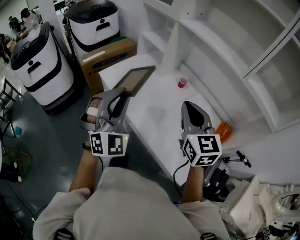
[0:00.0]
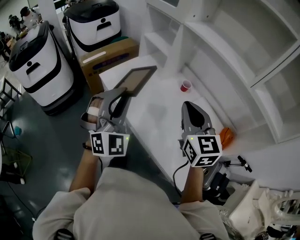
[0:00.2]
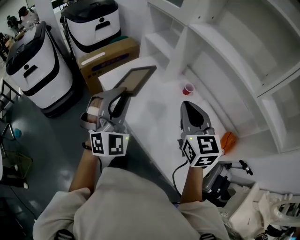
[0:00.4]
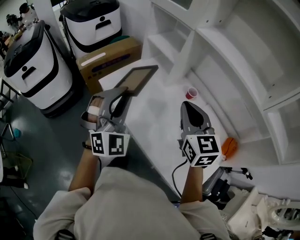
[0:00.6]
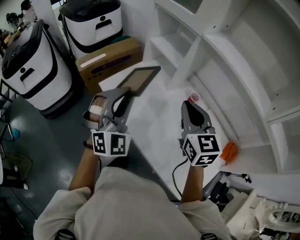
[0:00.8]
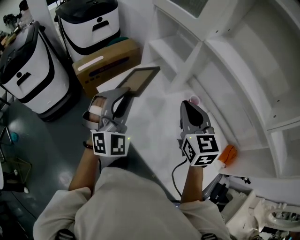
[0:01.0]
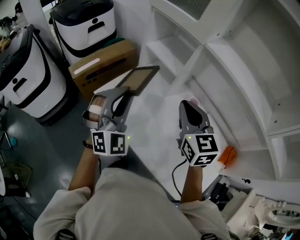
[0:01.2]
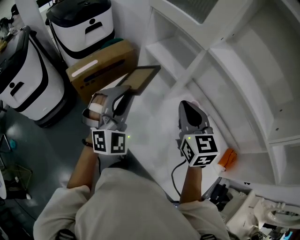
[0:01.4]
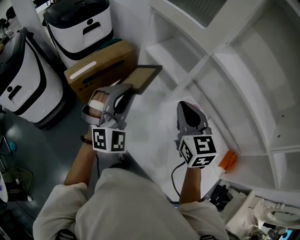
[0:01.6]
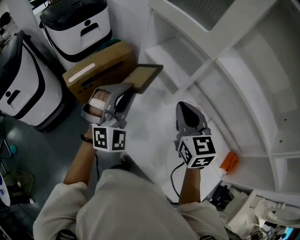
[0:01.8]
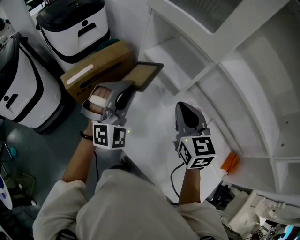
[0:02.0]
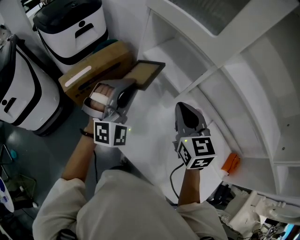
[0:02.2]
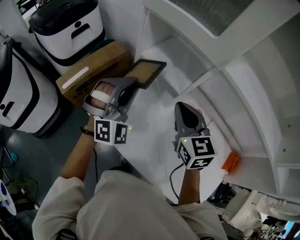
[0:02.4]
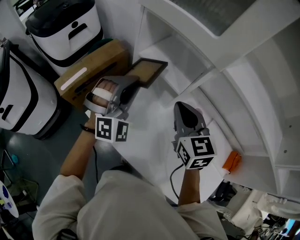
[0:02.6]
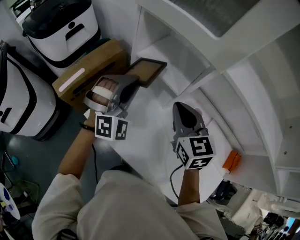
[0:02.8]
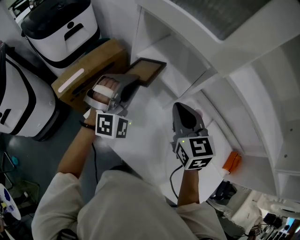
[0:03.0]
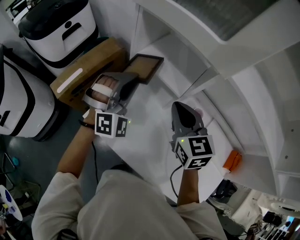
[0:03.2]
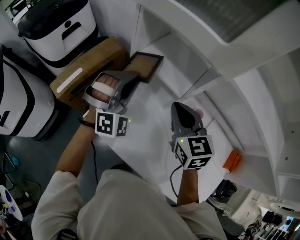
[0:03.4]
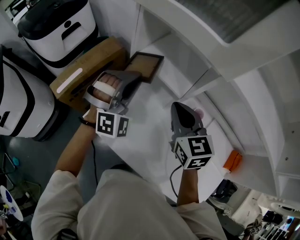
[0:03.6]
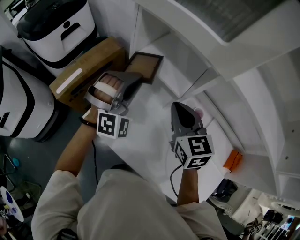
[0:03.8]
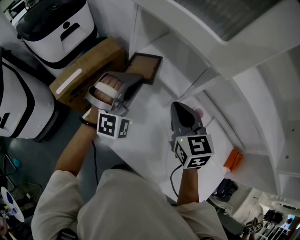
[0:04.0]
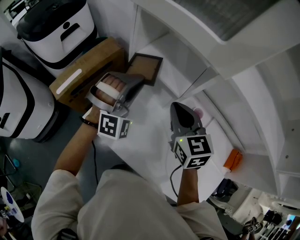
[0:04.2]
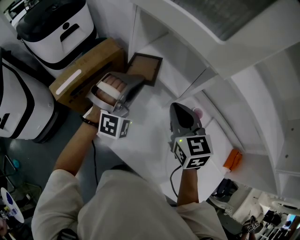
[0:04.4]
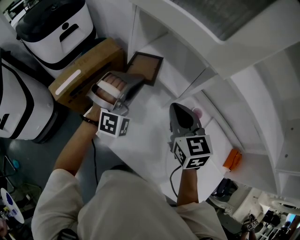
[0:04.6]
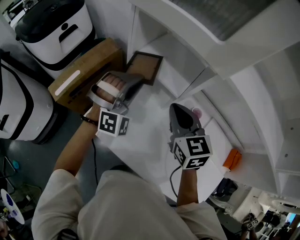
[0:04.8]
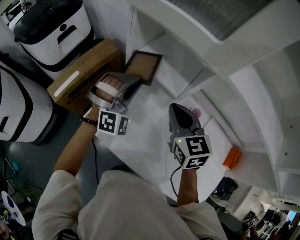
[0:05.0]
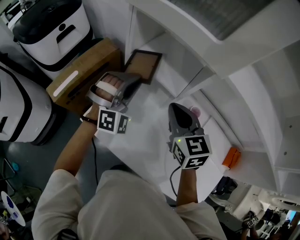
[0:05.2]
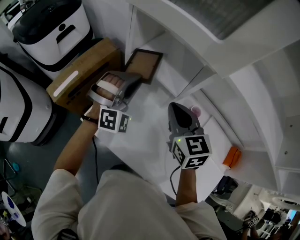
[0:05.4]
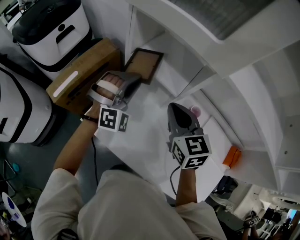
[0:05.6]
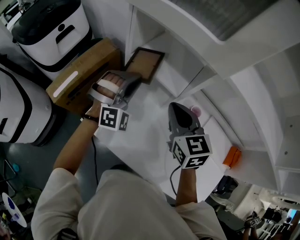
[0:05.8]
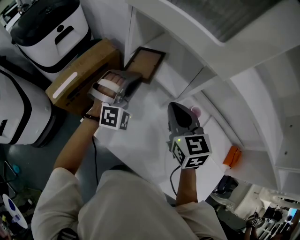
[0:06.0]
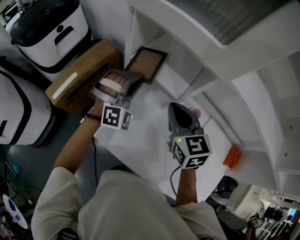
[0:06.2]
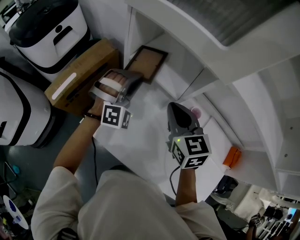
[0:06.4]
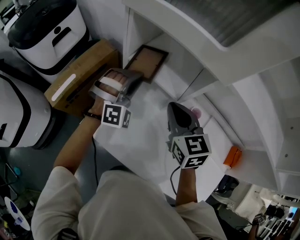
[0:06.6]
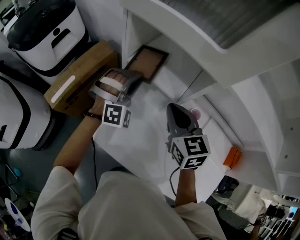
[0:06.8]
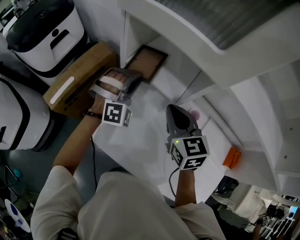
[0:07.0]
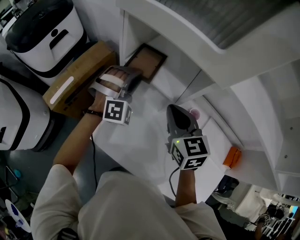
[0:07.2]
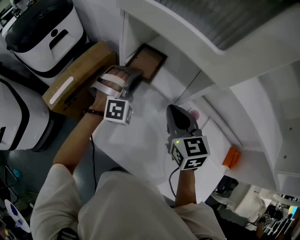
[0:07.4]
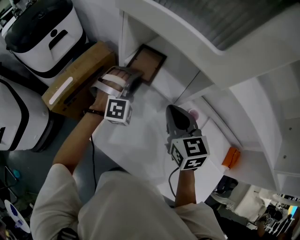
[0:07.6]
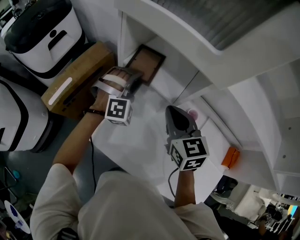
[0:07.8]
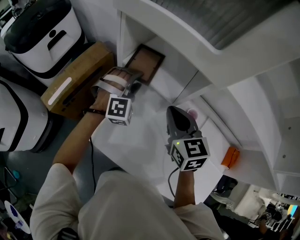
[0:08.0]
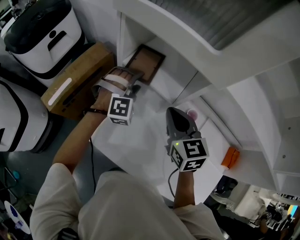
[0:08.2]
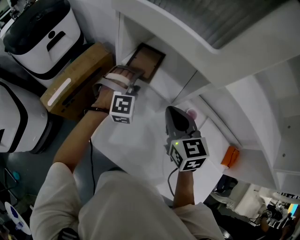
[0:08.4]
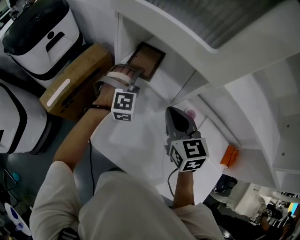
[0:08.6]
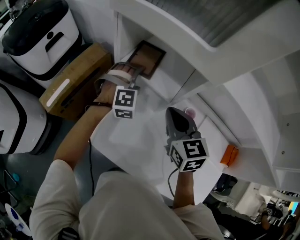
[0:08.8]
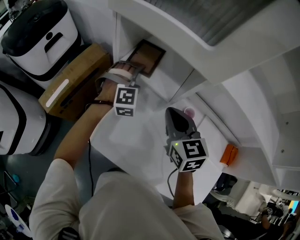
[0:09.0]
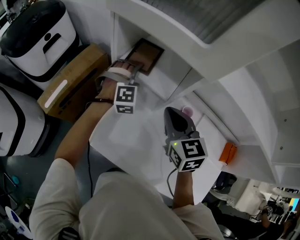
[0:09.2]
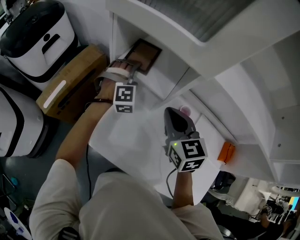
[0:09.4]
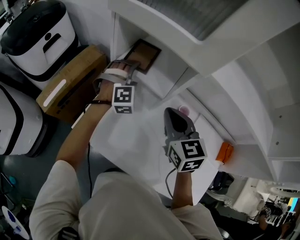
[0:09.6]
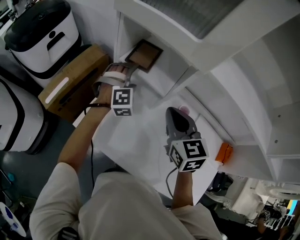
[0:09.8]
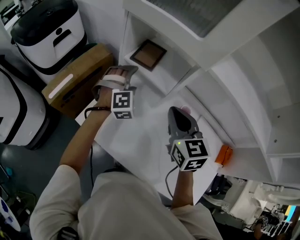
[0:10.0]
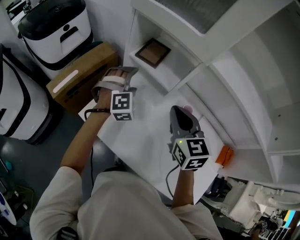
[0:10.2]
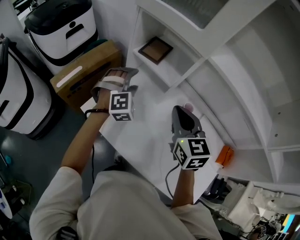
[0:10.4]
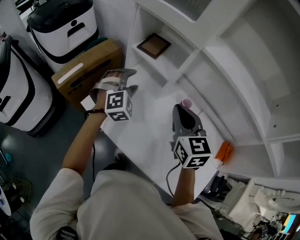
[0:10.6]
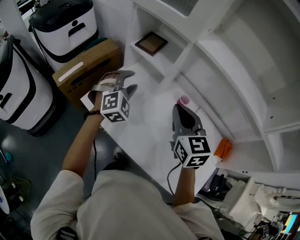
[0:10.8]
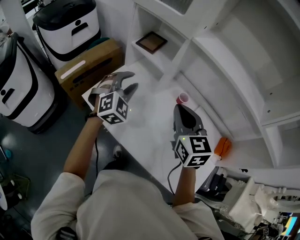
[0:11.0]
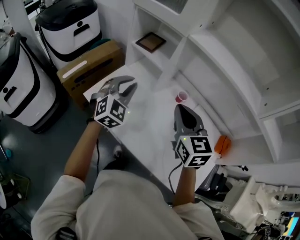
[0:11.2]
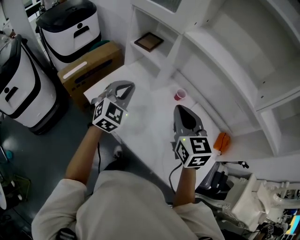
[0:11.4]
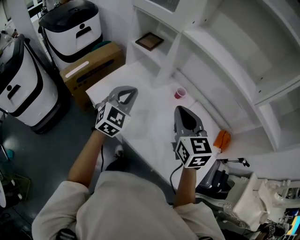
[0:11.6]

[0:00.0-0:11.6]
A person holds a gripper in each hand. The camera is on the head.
0:00.0 to 0:01.4: The grippers both shift forward by roughly 30 cm.
0:01.4 to 0:02.8: The left gripper travels forward by roughly 20 cm; the right gripper heads forward and downward, covering some 15 cm.
0:02.8 to 0:04.4: The grippers move only a little.
0:04.4 to 0:05.8: The grippers make only small movements.
0:05.8 to 0:07.2: The left gripper shifts some 5 cm forward.
0:07.2 to 0:08.8: The left gripper heads downward, covering approximately 5 cm, and opens.
0:08.8 to 0:10.2: Both grippers move backward, roughly 10 cm.
0:10.2 to 0:11.6: Both grippers move backward, approximately 25 cm. The left gripper rolls counterclockwise, seen from behind, by roughly 40 degrees, and closes up.

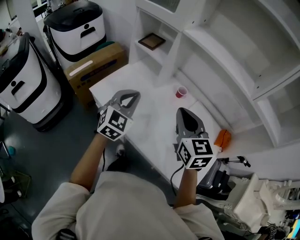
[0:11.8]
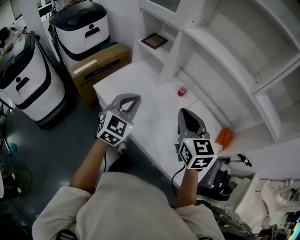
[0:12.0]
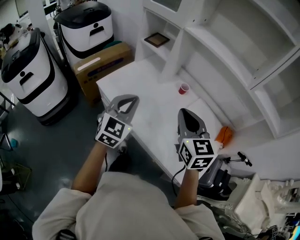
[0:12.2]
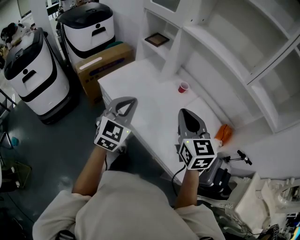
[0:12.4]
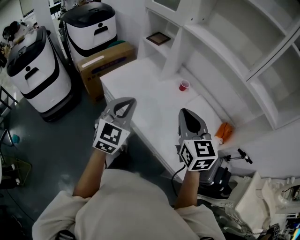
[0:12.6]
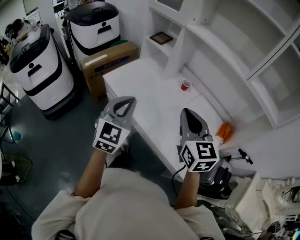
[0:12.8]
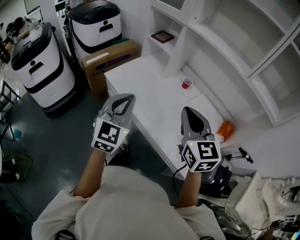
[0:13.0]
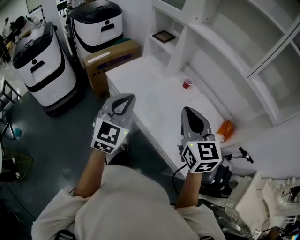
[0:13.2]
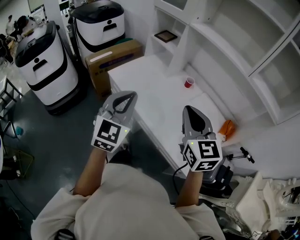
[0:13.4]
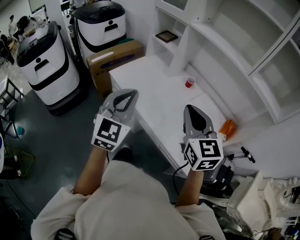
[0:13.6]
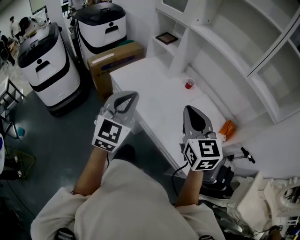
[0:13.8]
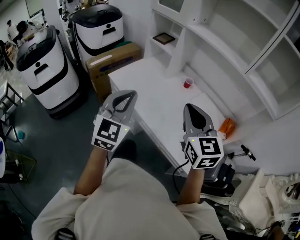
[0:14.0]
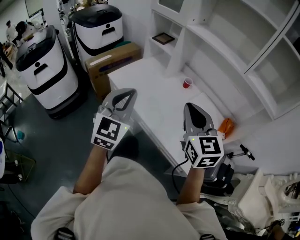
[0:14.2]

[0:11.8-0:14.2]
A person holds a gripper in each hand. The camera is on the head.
0:11.8 to 0:13.0: Both grippers move backward, some 20 cm.
0:13.0 to 0:14.2: The left gripper shifts by approximately 5 cm.

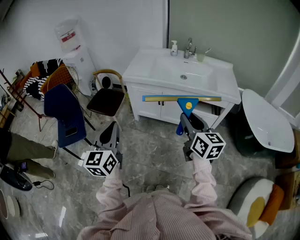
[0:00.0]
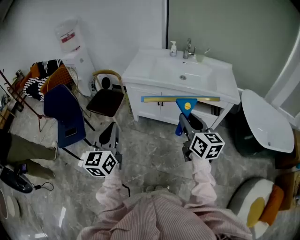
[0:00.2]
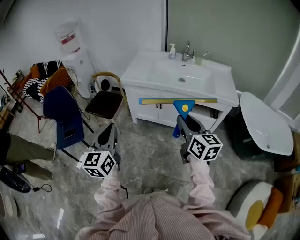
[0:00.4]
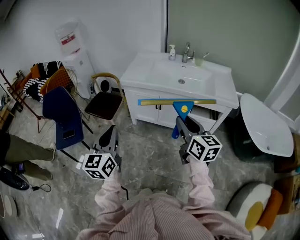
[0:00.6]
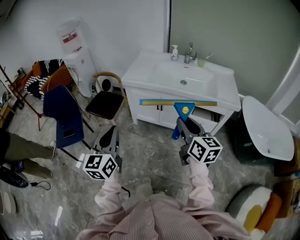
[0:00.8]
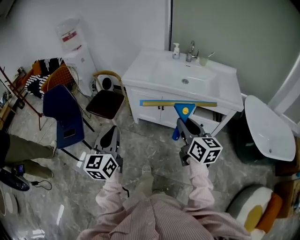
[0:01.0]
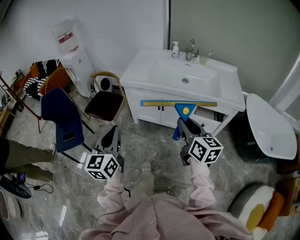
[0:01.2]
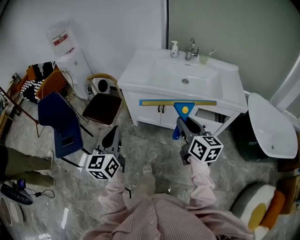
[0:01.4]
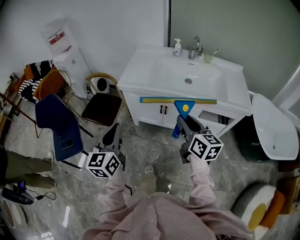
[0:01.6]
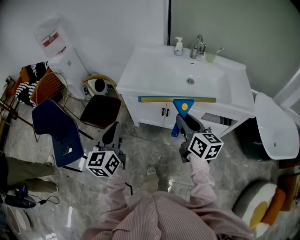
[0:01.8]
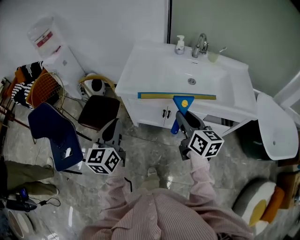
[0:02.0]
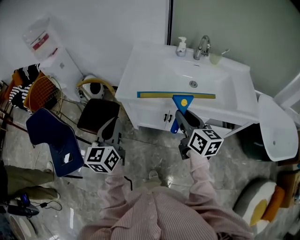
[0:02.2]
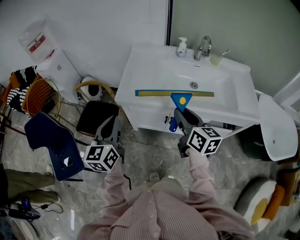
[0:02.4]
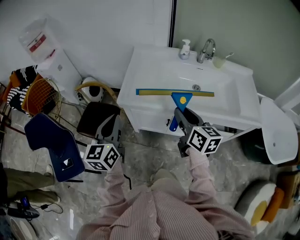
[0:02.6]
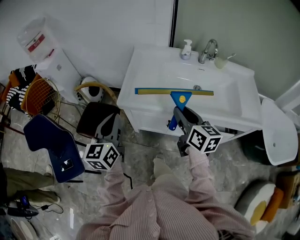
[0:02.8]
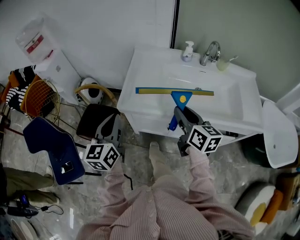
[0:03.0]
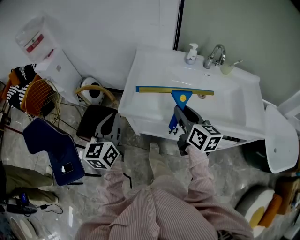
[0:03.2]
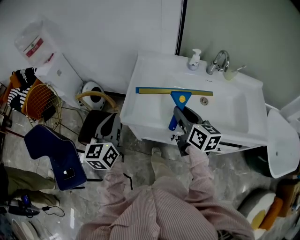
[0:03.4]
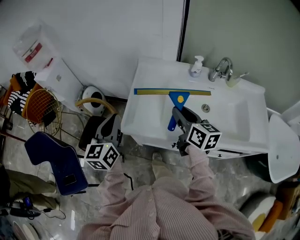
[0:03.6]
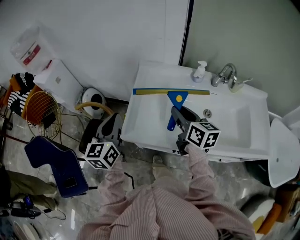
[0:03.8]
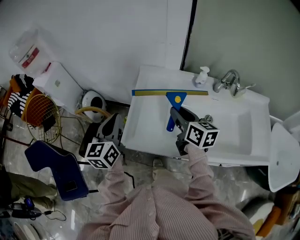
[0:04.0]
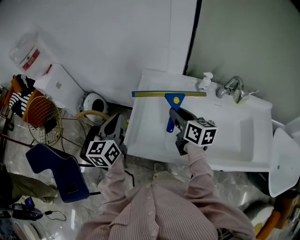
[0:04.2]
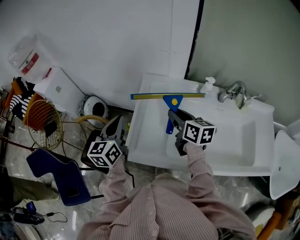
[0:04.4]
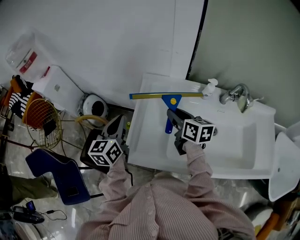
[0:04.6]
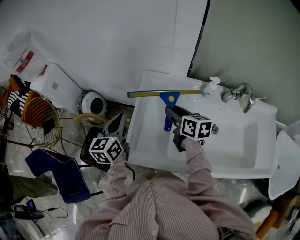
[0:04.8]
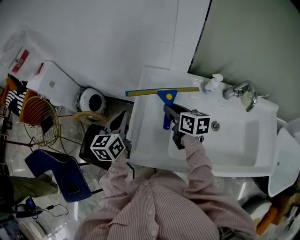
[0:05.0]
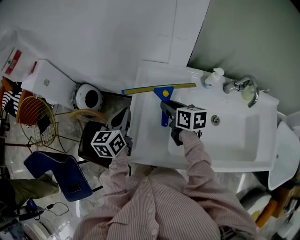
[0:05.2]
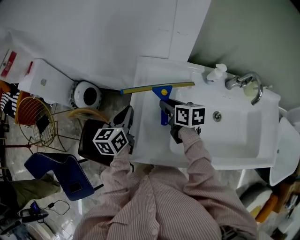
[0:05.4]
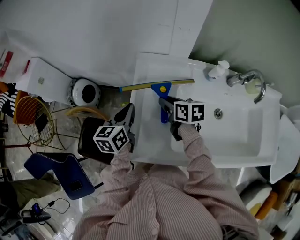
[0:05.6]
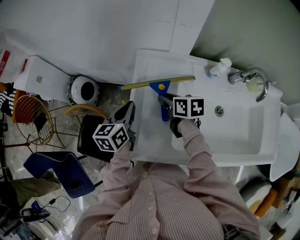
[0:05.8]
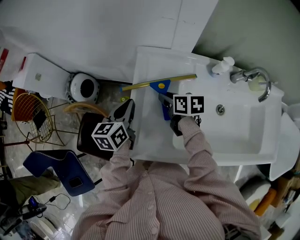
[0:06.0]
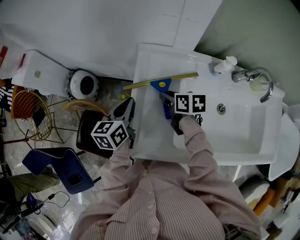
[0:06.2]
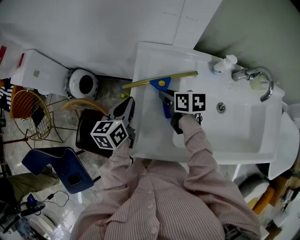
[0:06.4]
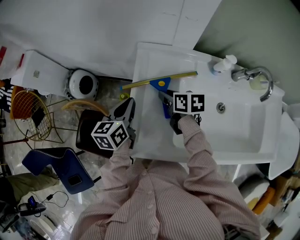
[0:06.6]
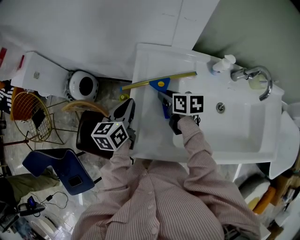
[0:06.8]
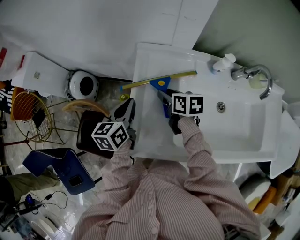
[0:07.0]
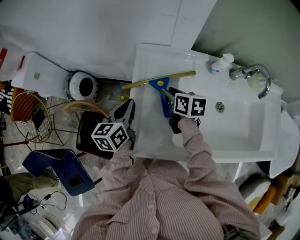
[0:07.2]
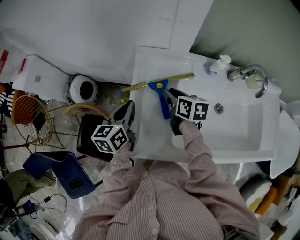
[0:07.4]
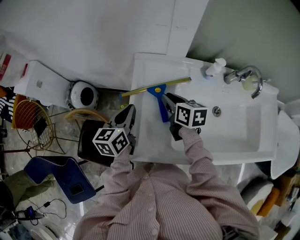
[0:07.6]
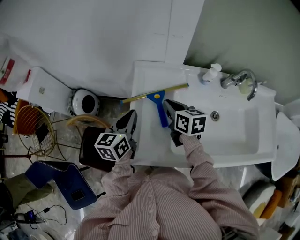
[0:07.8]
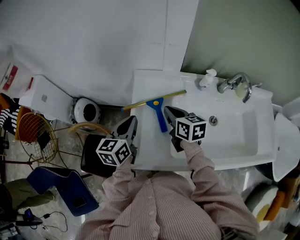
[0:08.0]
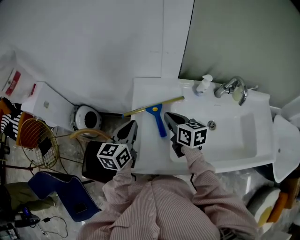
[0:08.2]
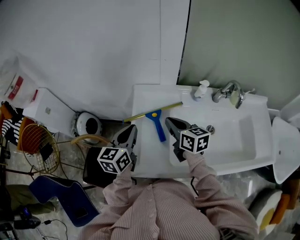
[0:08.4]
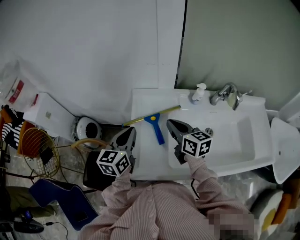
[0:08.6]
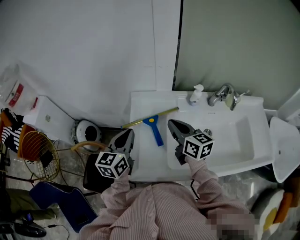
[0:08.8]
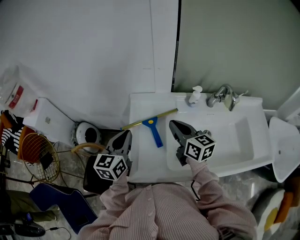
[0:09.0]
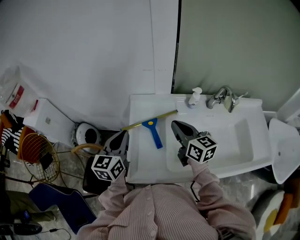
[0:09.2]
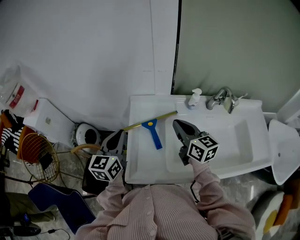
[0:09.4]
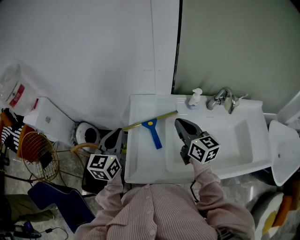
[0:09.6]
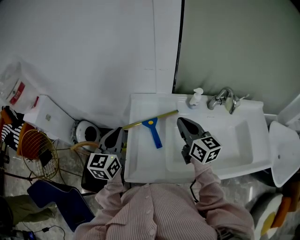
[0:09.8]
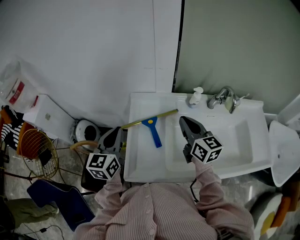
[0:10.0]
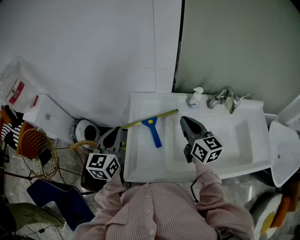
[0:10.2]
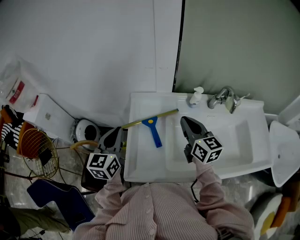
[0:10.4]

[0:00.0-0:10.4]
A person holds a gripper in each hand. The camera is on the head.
0:00.0 to 0:01.4: The two grippers go some 10 cm forward.
0:01.4 to 0:03.0: The grippers both shift forward by approximately 35 cm.
0:03.0 to 0:04.4: Both grippers travel together forward, some 30 cm.
0:04.4 to 0:06.0: The grippers both shift downward and forward by some 15 cm. The right gripper rotates about 30 degrees.
0:06.0 to 0:07.4: The grippers make only small movements.
0:07.4 to 0:09.0: The left gripper shifts about 10 cm upward; the right gripper moves upward and backward, about 15 cm, rotates roughly 30 degrees, and closes up.
0:09.0 to 0:10.4: The right gripper ends up approximately 5 cm from where it was.
